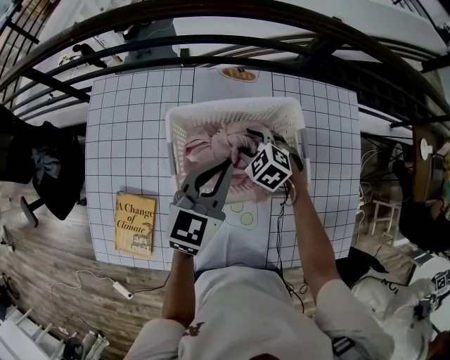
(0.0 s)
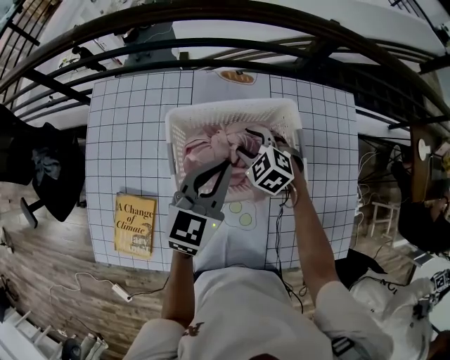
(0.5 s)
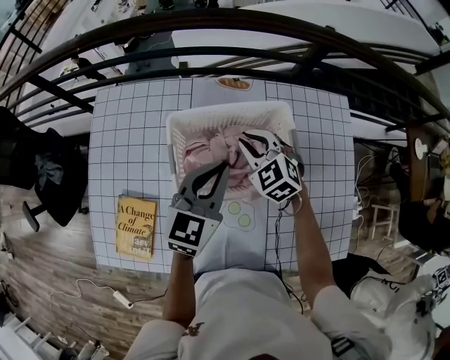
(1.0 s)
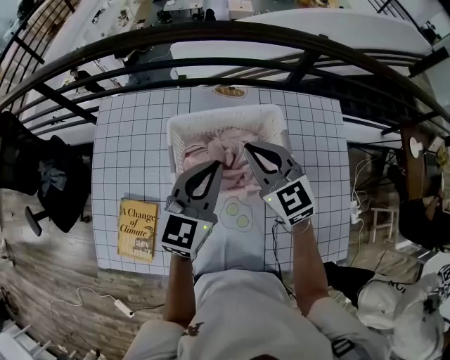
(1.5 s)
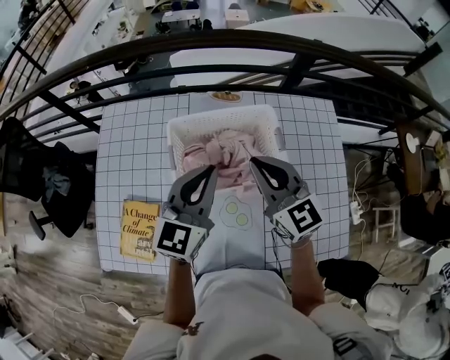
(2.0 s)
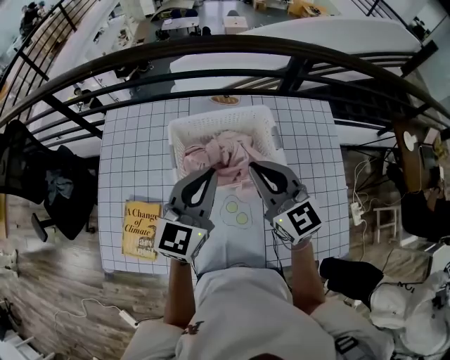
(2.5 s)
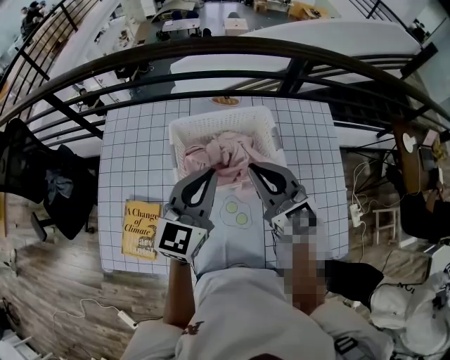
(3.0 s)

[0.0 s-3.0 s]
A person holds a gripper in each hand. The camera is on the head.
0.0 to 1.5 s: The right gripper shifts some 20 cm upward, angles its fingers upward, by some 40 degrees, and closes; the left gripper shifts some 5 cm upward.
1.5 to 3.0 s: The right gripper heads backward and upward, covering approximately 10 cm, while the left gripper moves backward, some 5 cm.

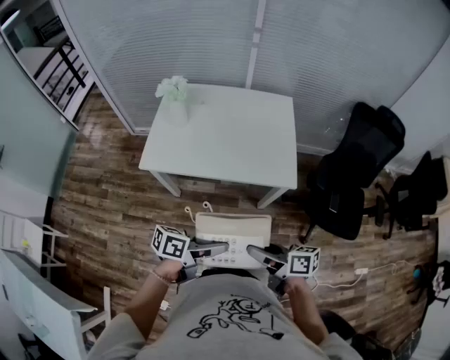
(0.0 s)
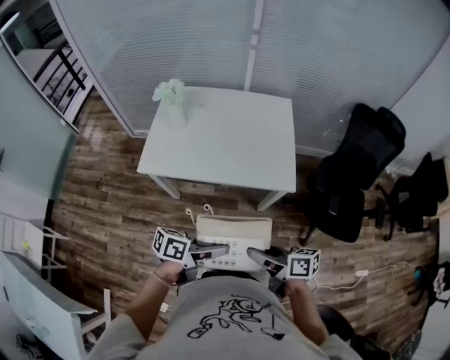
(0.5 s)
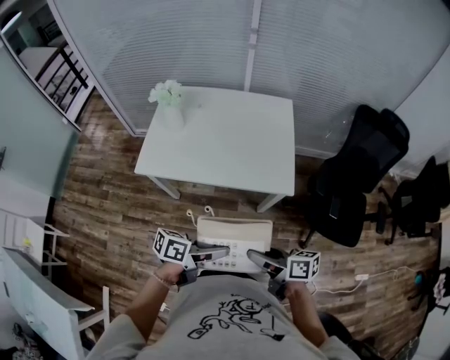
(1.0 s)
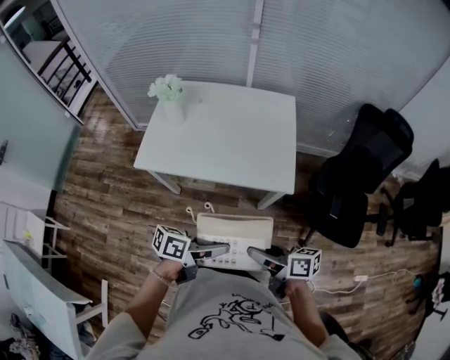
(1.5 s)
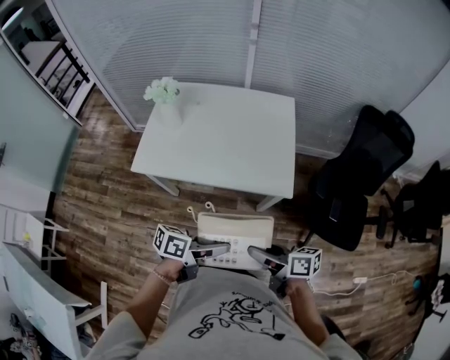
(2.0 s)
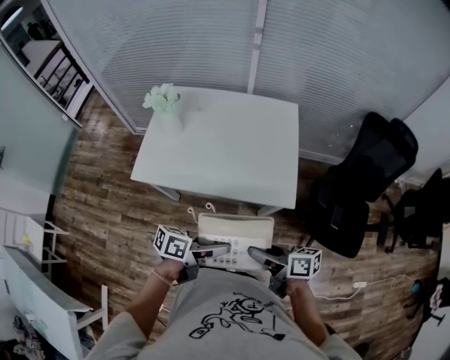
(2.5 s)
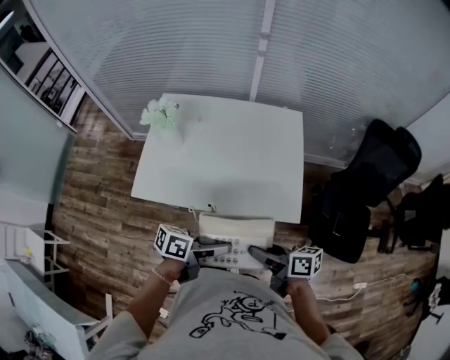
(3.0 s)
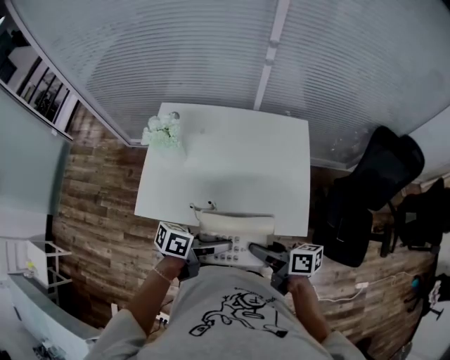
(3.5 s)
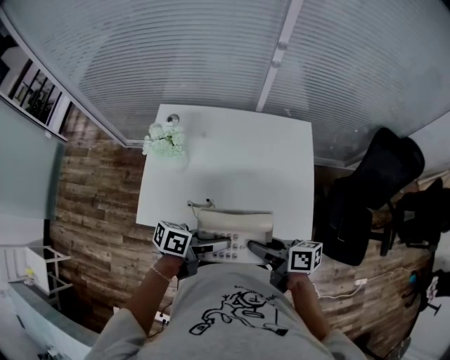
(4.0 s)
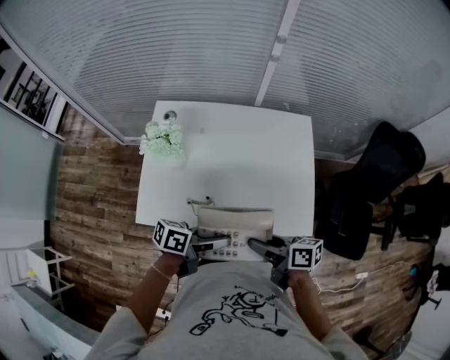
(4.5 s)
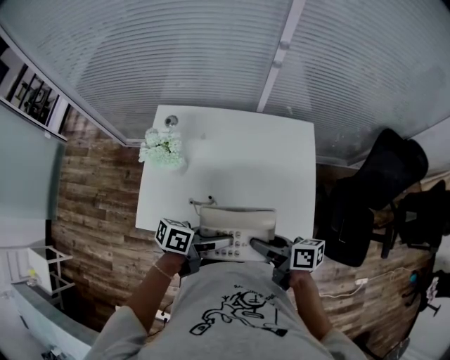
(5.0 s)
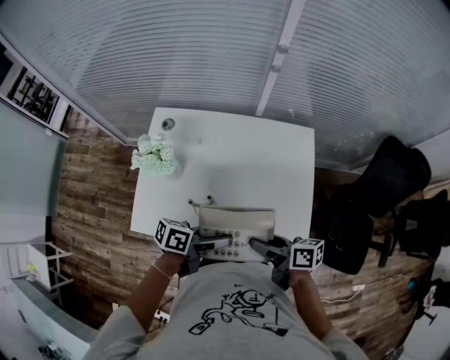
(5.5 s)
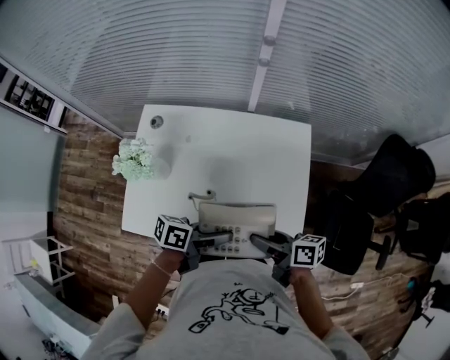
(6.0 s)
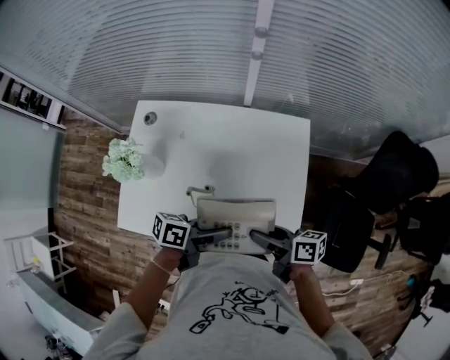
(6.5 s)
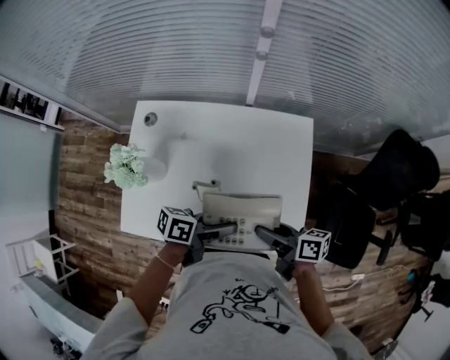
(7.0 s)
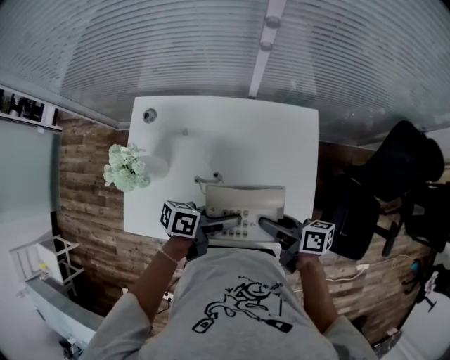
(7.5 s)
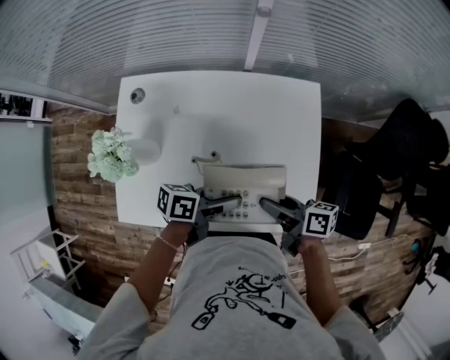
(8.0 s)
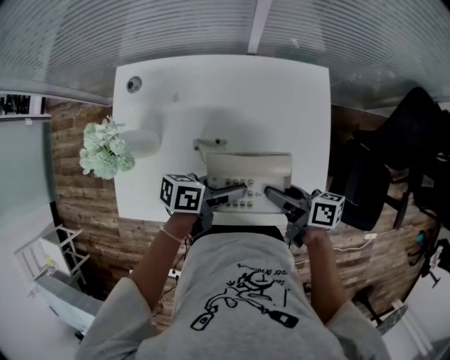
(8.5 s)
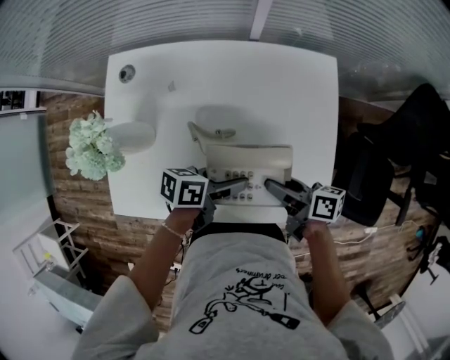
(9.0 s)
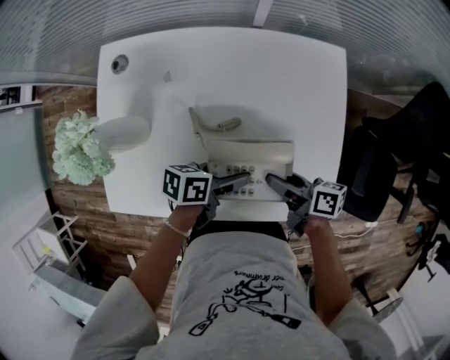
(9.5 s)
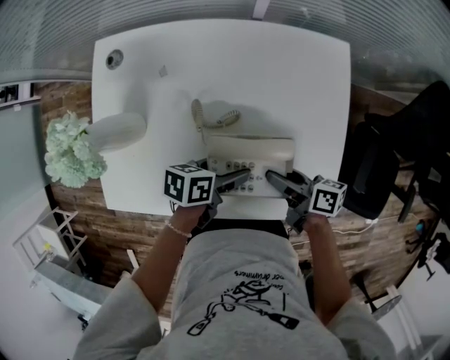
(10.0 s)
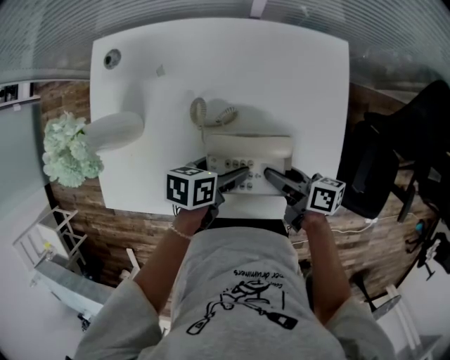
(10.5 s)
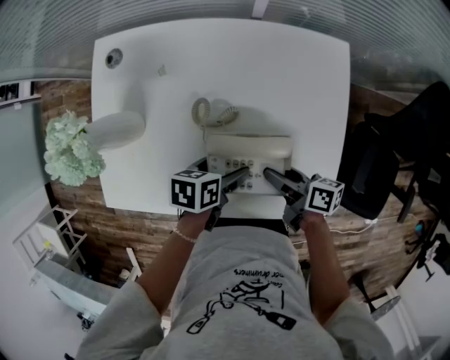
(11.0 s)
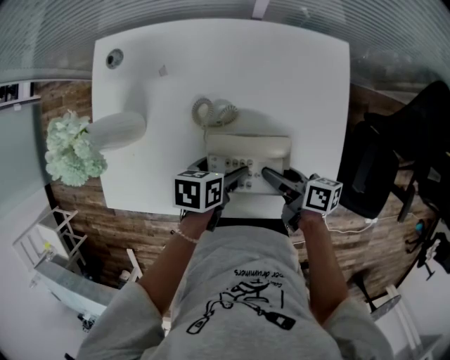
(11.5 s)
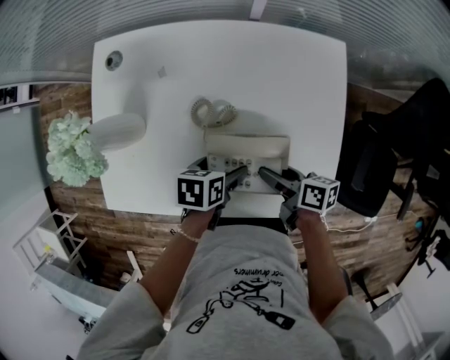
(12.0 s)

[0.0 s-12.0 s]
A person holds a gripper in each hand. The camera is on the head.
0.0 to 2.0 s: The right gripper changes place by approximately 10 cm. Meanwhile the left gripper changes place by some 10 cm.
2.0 to 4.0 s: The left gripper changes place by about 25 cm, while the right gripper moves about 25 cm.
4.0 to 6.0 s: The left gripper shifts by roughly 10 cm; the right gripper moves some 15 cm.
6.0 to 8.0 s: The right gripper changes place by some 5 cm. The left gripper travels downward by about 5 cm.
8.0 to 10.0 s: Both grippers move downward, approximately 10 cm.
10.0 to 12.0 s: The grippers make only small movements.

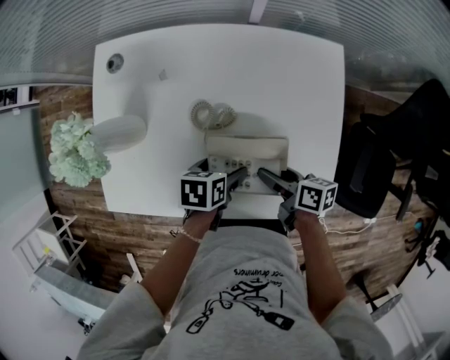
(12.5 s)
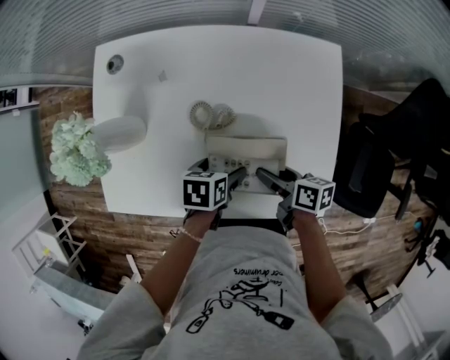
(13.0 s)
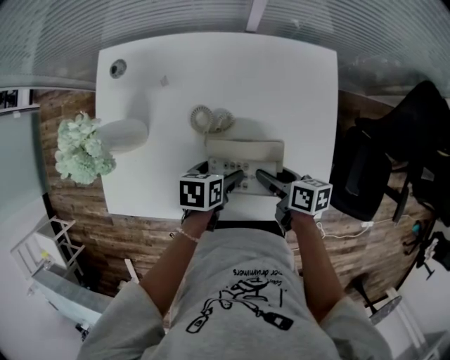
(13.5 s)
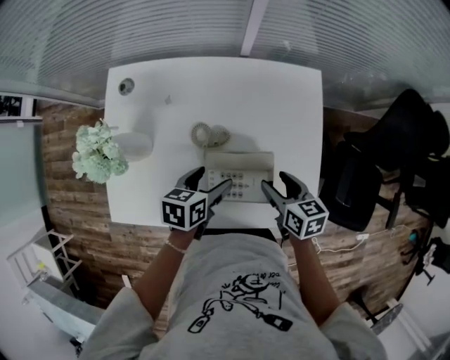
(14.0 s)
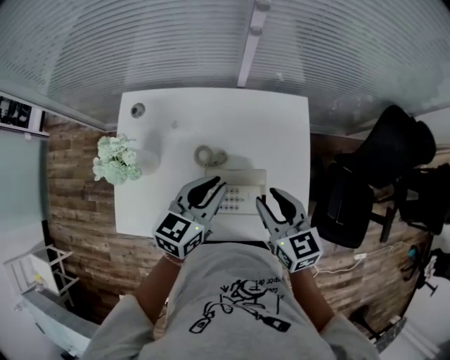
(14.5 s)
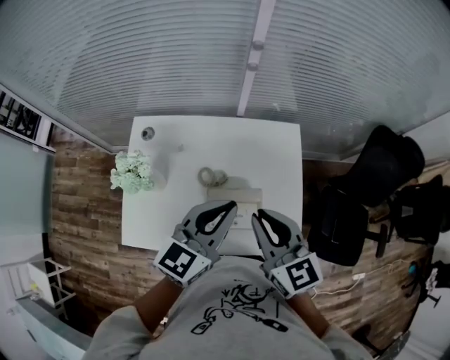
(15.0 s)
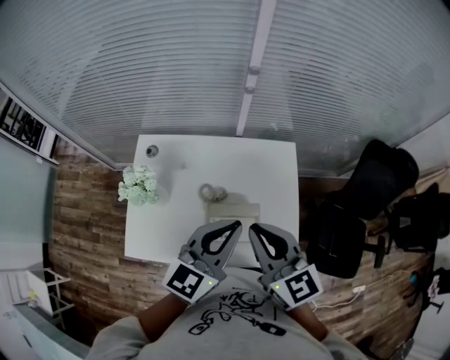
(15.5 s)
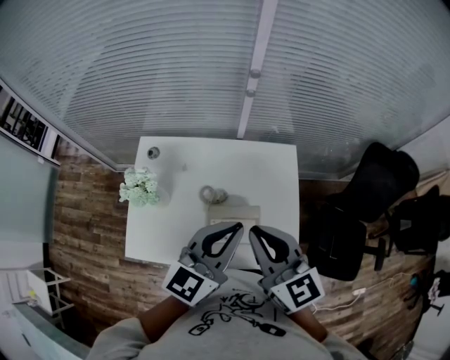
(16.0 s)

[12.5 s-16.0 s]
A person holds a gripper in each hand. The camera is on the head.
12.5 to 14.5 s: Both grippers travel together upward, some 25 cm. The right gripper rotates around the line of its fingers by about 50 degrees, counterclockwise from behind, and closes up, while the left gripper tilts its fingers roughly 40 degrees upward, and closes its fingers.
14.5 to 16.0 s: The grippers both shift upward by roughly 20 cm. The right gripper closes.

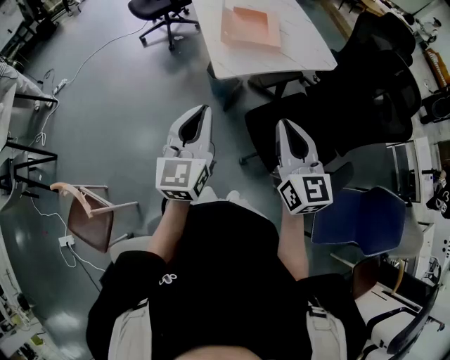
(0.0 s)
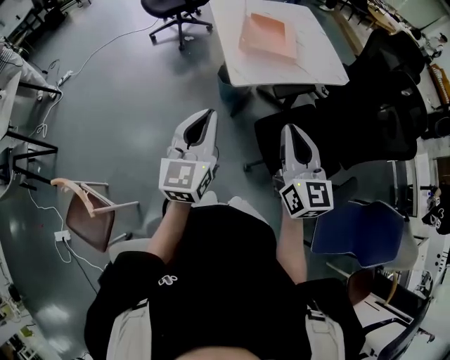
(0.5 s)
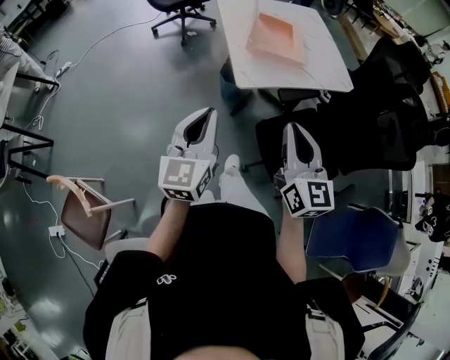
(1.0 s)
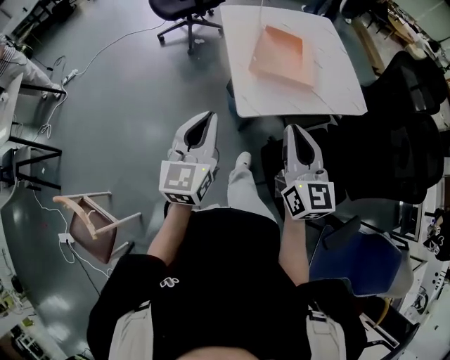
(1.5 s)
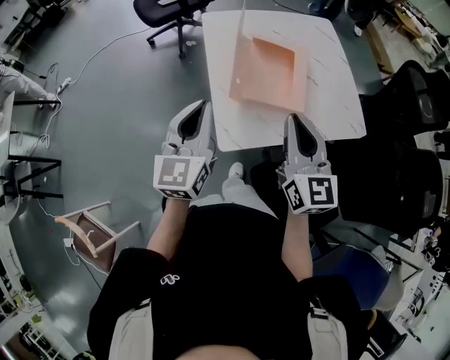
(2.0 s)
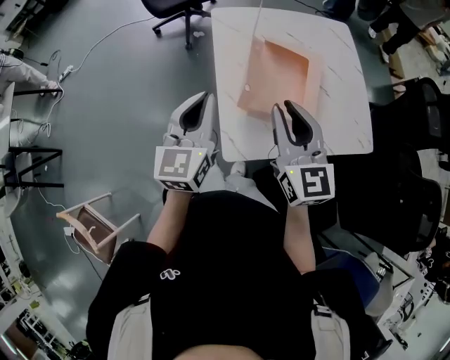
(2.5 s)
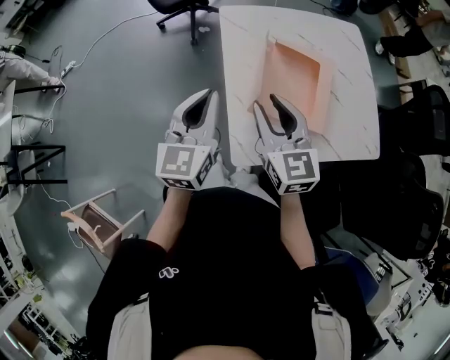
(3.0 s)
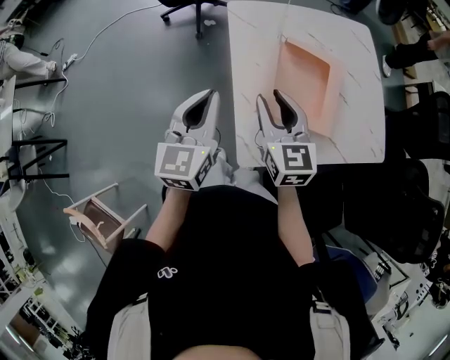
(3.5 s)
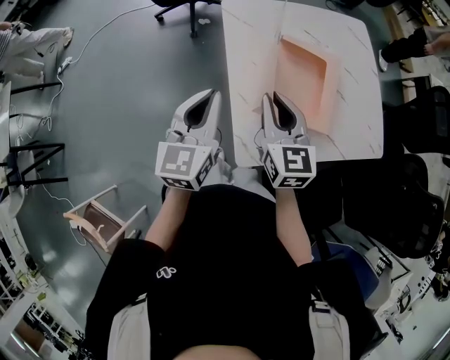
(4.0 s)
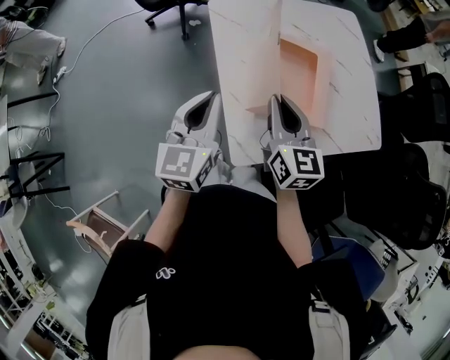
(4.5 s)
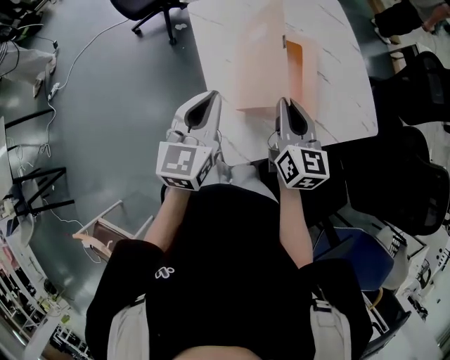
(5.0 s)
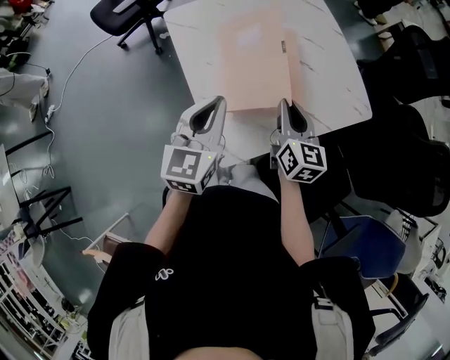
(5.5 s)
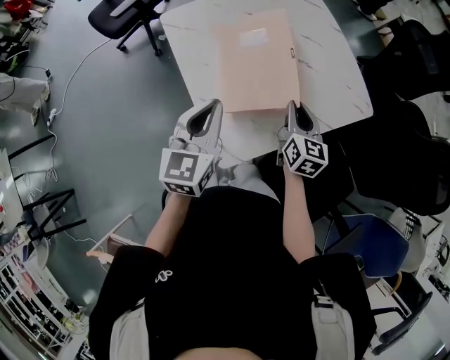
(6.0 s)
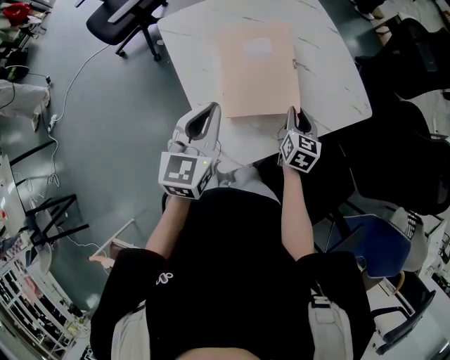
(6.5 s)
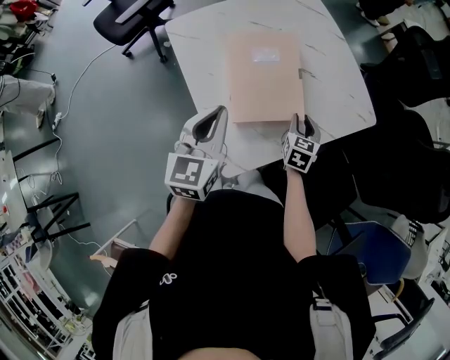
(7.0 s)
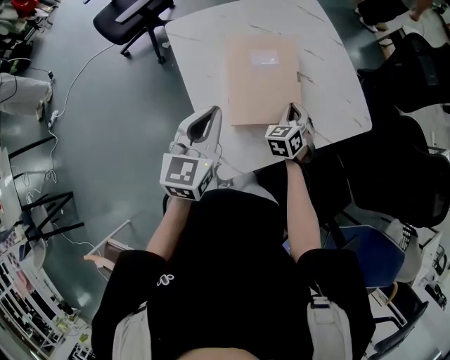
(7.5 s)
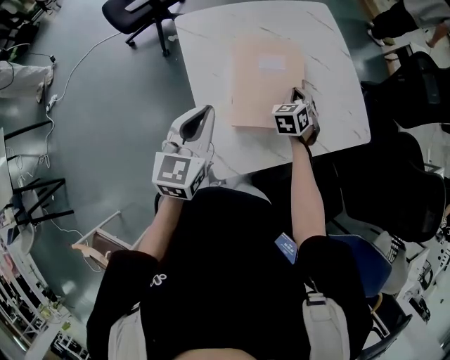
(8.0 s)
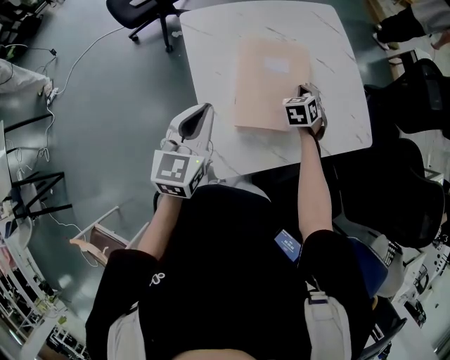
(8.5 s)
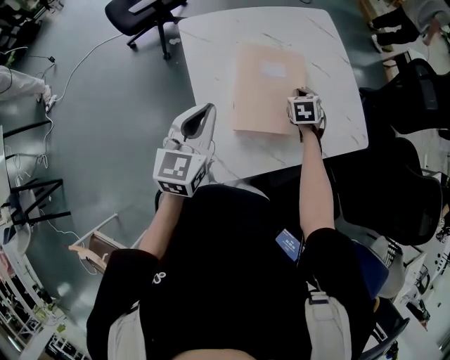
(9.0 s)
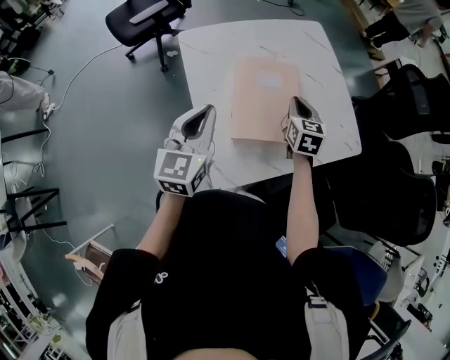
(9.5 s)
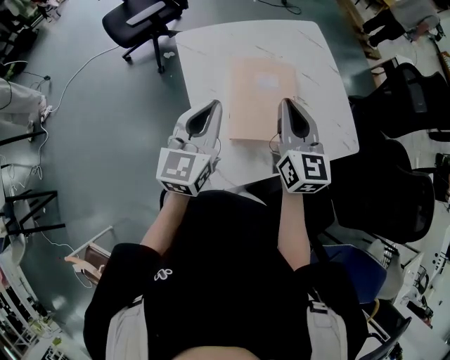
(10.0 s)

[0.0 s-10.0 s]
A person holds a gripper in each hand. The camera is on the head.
0.0 to 2.0 s: Both grippers move forward, about 40 cm.
2.0 to 4.0 s: The right gripper shifts approximately 20 cm forward, to the left and downward, and opens, then closes once more, while the left gripper heads forward, covering roughly 15 cm.
4.0 to 6.0 s: The right gripper moves to the right and downward, roughly 25 cm, and rotates some 30 degrees; the left gripper heads to the right, covering approximately 15 cm.
6.0 to 8.0 s: The right gripper travels forward and downward by approximately 15 cm, and rotates around the line of its fingers by some 40 degrees, counterclockwise from behind.
8.0 to 10.0 s: The left gripper ends up some 5 cm from where it was. The right gripper travels upward by about 25 cm, and tips its fingers upward by roughly 40 degrees.
